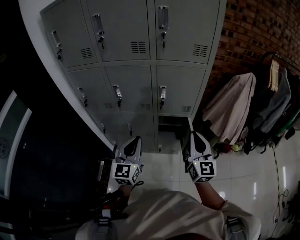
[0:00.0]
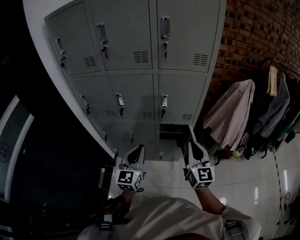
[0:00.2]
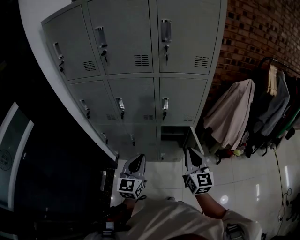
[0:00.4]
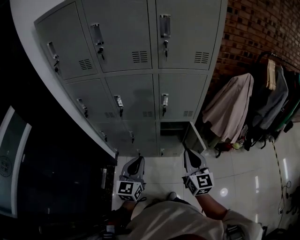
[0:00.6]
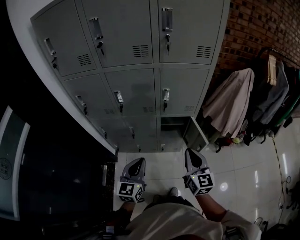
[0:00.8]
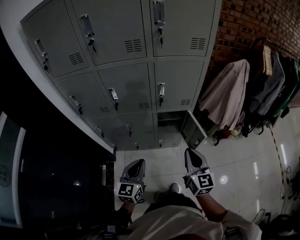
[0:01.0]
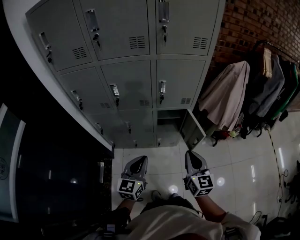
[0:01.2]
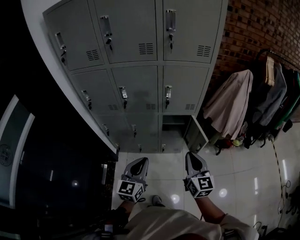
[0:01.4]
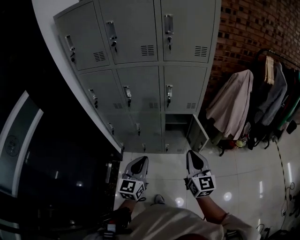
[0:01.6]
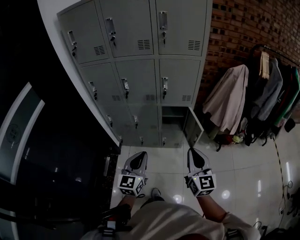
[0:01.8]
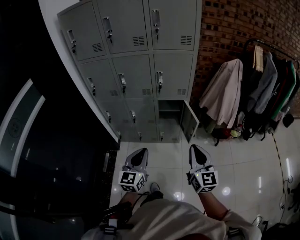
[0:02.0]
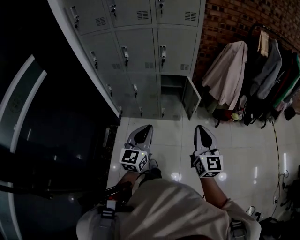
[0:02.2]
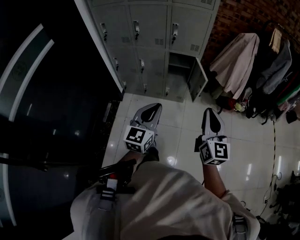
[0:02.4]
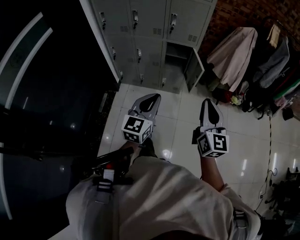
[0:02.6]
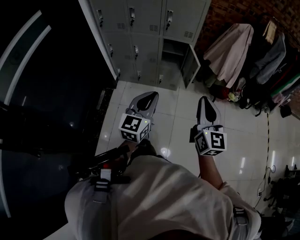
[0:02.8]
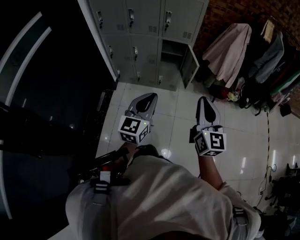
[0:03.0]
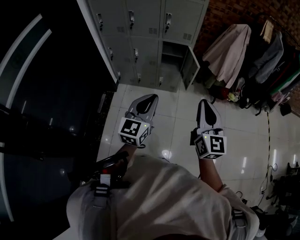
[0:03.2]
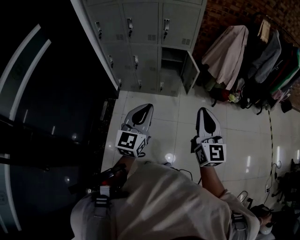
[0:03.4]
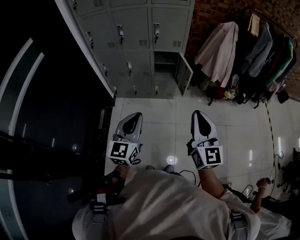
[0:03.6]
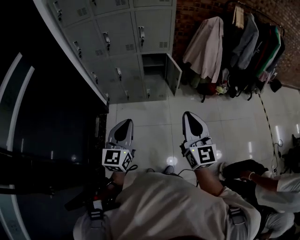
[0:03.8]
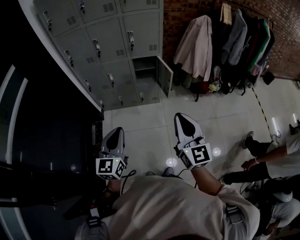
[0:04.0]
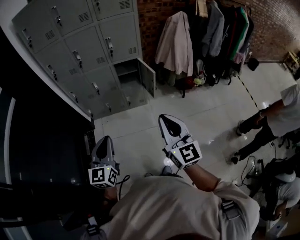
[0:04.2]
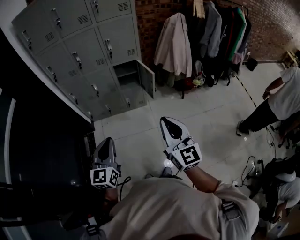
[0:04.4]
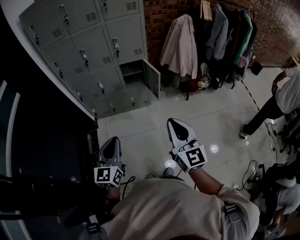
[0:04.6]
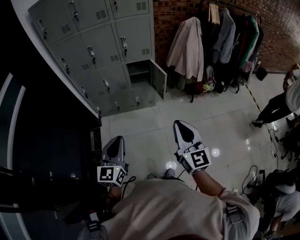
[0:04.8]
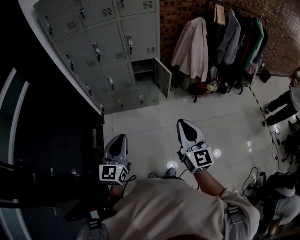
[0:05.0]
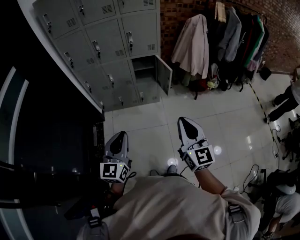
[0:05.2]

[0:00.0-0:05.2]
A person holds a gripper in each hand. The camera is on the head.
0:00.0 to 0:01.8: The two grippers go about 20 cm backward.
0:01.8 to 0:03.4: The right gripper moves backward, some 20 cm; the left gripper moves backward and to the right, about 20 cm.
0:03.4 to 0:05.2: The grippers both shift backward by approximately 10 cm.

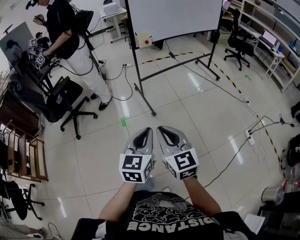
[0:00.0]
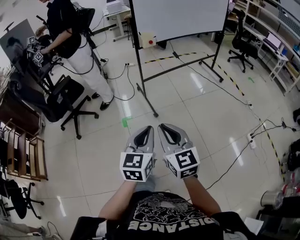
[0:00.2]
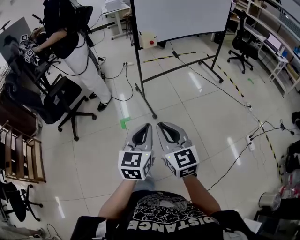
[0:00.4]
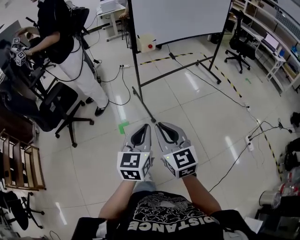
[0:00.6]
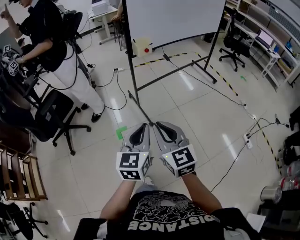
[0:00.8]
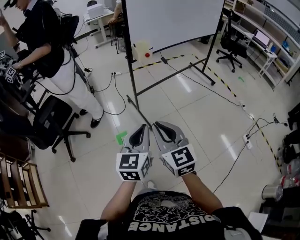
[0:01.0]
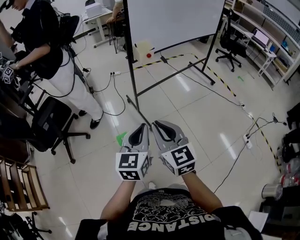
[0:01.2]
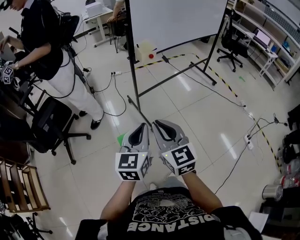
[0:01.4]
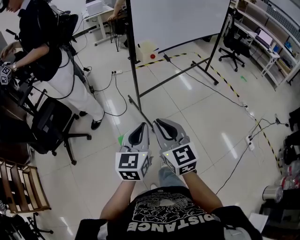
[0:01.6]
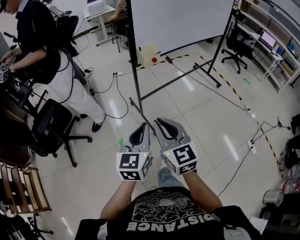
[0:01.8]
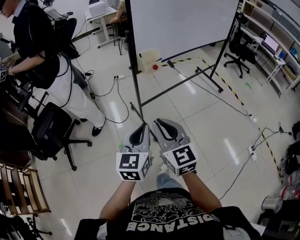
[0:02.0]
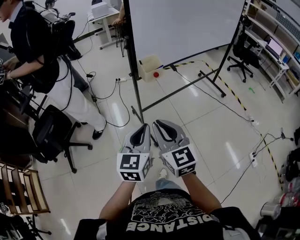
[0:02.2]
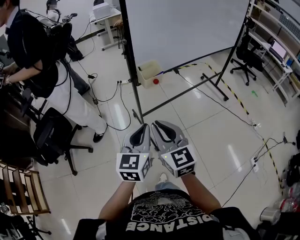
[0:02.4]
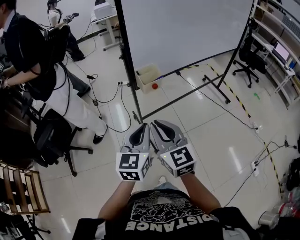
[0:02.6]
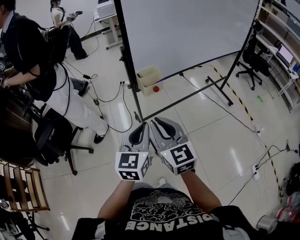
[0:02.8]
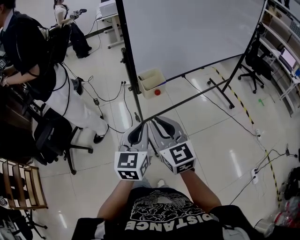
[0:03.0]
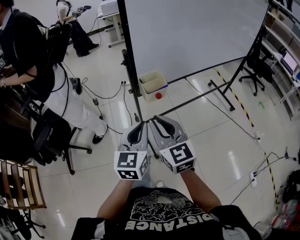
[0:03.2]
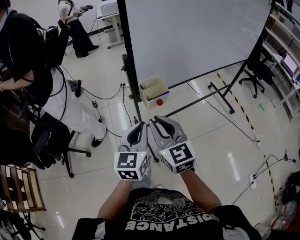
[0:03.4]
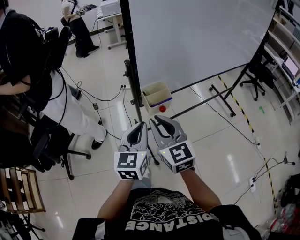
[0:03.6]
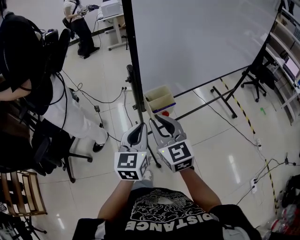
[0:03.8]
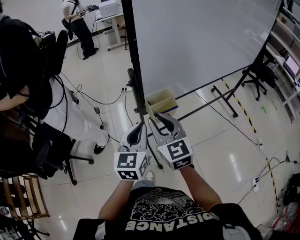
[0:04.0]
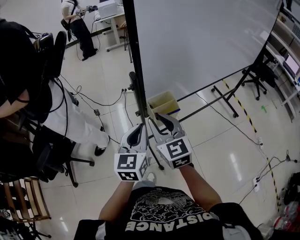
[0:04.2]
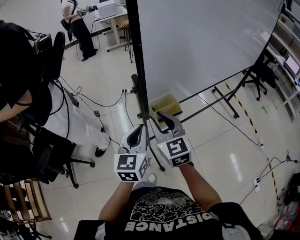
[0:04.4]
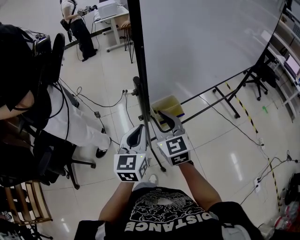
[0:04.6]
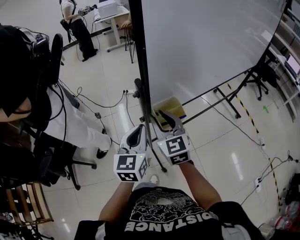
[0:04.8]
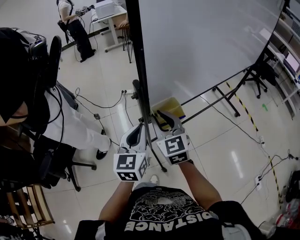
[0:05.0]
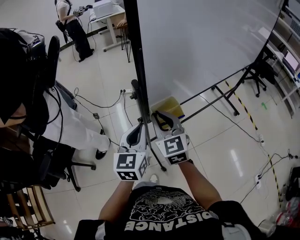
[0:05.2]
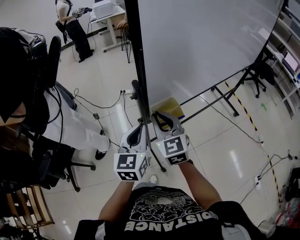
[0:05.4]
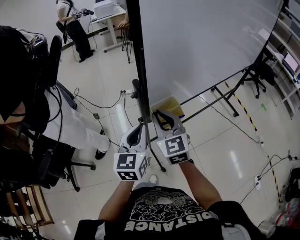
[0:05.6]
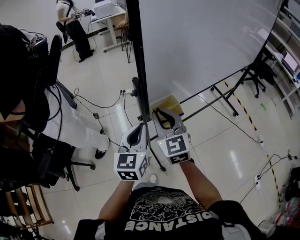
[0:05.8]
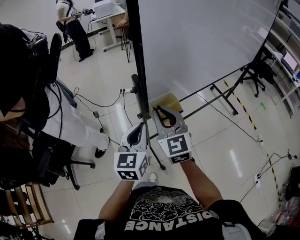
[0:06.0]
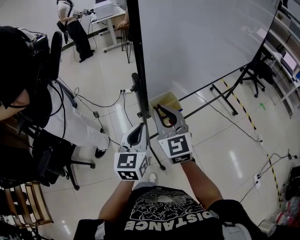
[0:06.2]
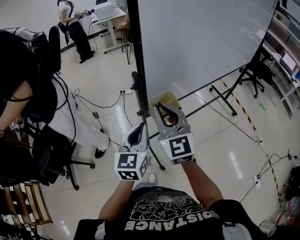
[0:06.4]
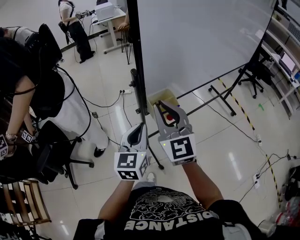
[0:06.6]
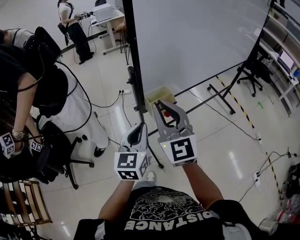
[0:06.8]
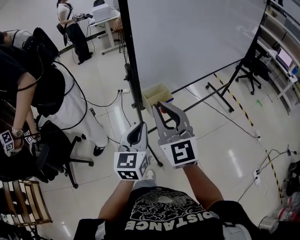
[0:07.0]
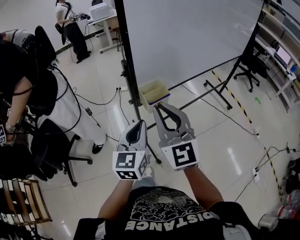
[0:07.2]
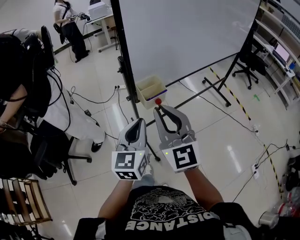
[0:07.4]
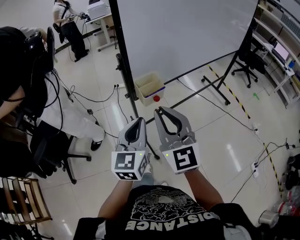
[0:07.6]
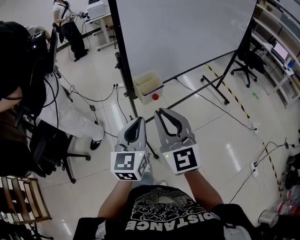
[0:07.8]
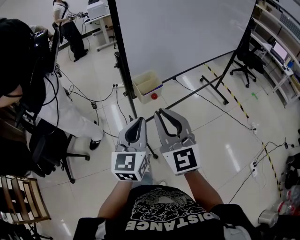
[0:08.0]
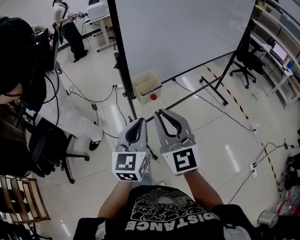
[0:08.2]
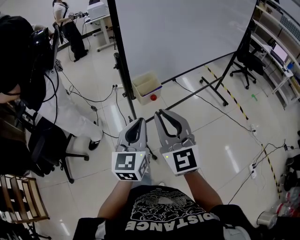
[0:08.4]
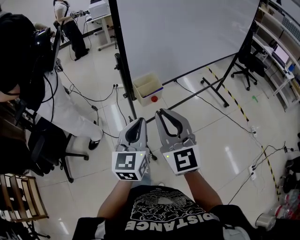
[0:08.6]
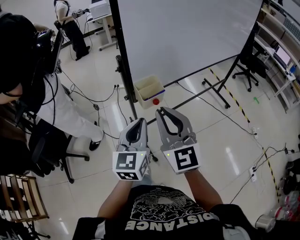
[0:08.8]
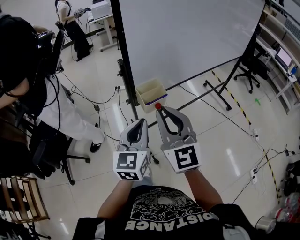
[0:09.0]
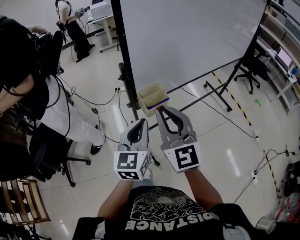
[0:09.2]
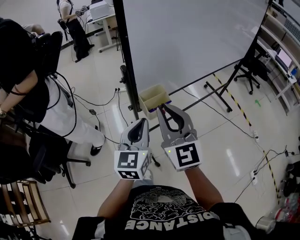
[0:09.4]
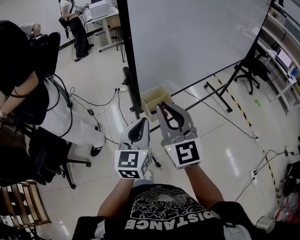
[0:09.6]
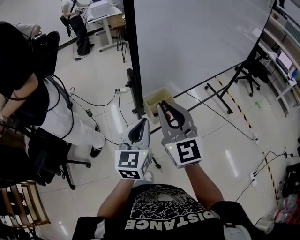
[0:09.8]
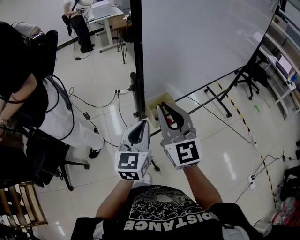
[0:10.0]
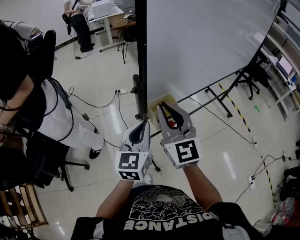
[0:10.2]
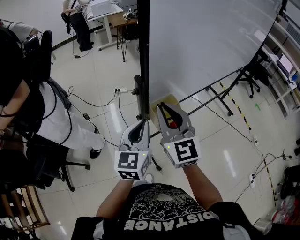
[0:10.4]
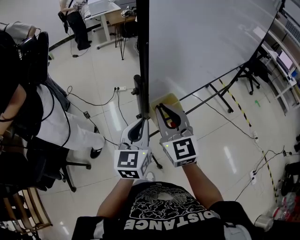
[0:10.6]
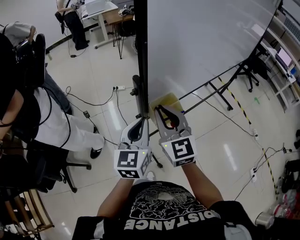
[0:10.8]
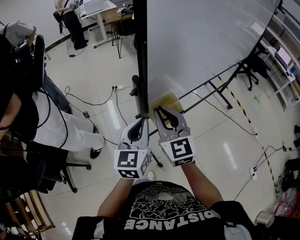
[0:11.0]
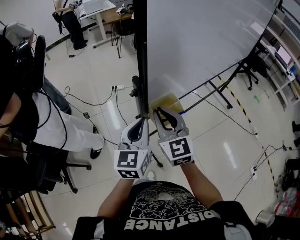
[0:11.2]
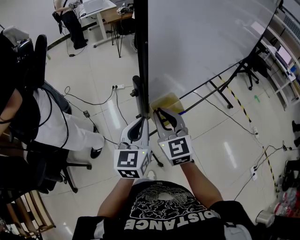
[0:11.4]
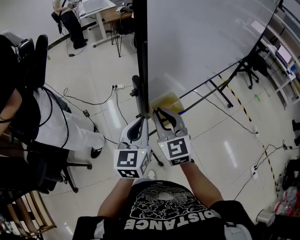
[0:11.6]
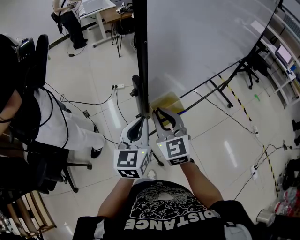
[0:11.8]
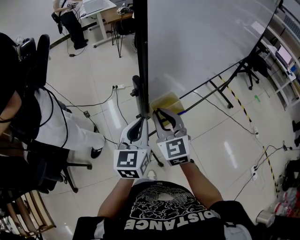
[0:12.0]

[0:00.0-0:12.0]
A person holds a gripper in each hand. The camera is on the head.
0:00.0 to 0:01.6: Both grippers move forward, about 30 cm.
0:01.6 to 0:03.0: Both grippers travel together forward, approximately 25 cm.
0:03.0 to 0:04.4: The two grippers go roughly 20 cm forward.
0:04.4 to 0:06.0: The grippers move only a little.
0:06.0 to 0:07.6: Both grippers travel together backward, about 15 cm.
0:07.6 to 0:09.0: The grippers move only a little.
0:09.0 to 0:10.4: Both grippers travel together forward and to the left, roughly 15 cm.
0:10.4 to 0:12.0: The right gripper goes approximately 10 cm downward.

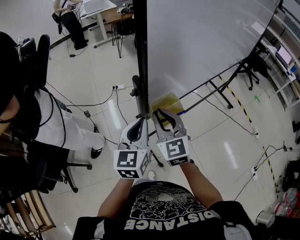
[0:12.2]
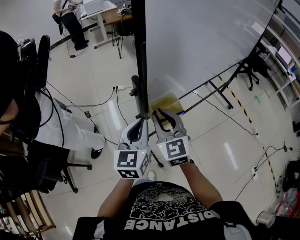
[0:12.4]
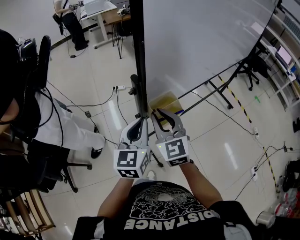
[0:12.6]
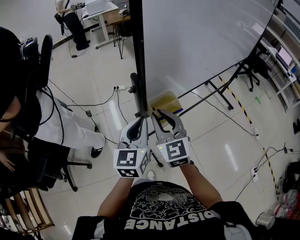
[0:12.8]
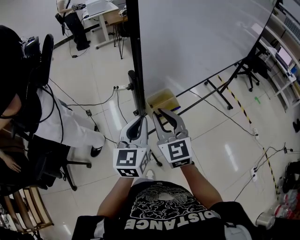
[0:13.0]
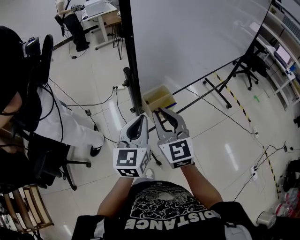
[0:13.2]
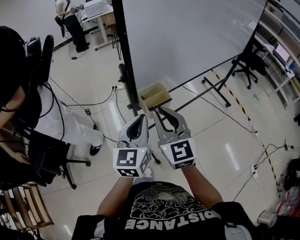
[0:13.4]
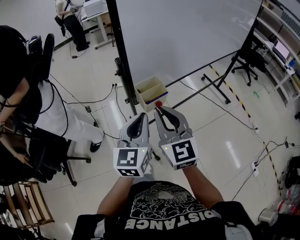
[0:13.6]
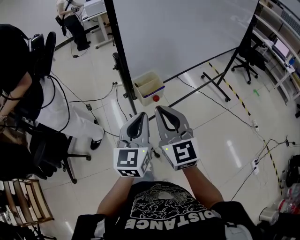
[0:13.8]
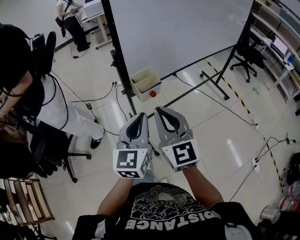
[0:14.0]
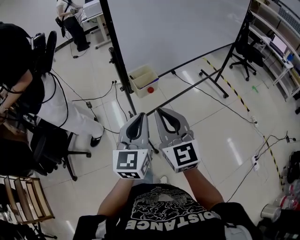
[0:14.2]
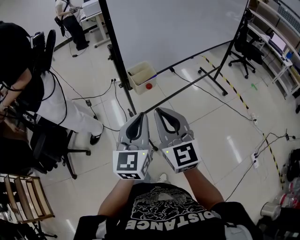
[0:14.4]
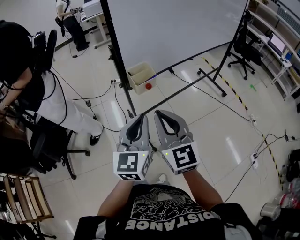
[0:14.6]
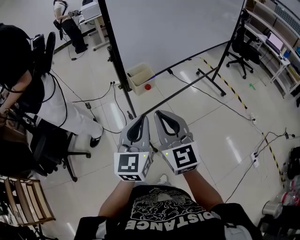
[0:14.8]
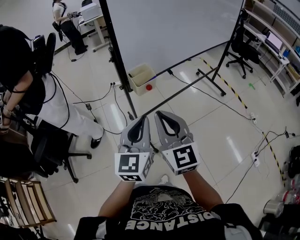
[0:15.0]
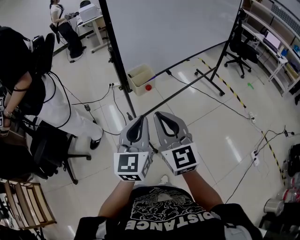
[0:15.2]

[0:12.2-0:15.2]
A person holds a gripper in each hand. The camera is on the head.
0:12.2 to 0:13.8: The right gripper goes approximately 20 cm backward, upward and to the right. Meanwhile the left gripper heads backward and to the right, covering roughly 15 cm.
0:13.8 to 0:15.2: The grippers both shift backward by roughly 10 cm.

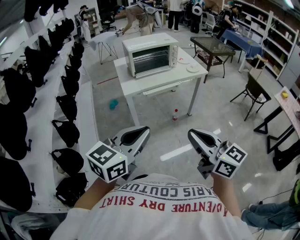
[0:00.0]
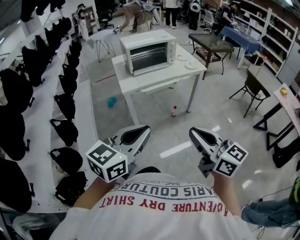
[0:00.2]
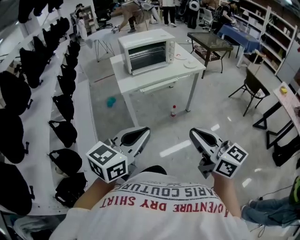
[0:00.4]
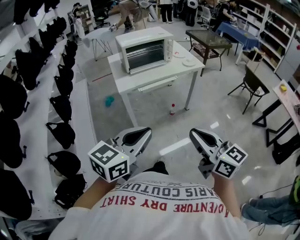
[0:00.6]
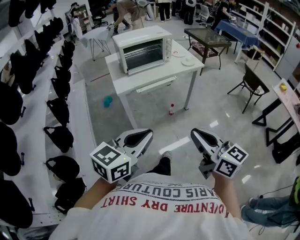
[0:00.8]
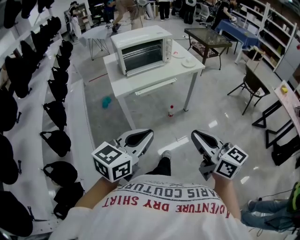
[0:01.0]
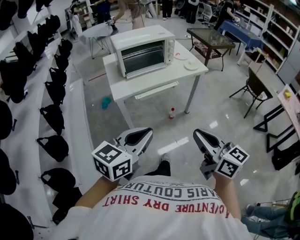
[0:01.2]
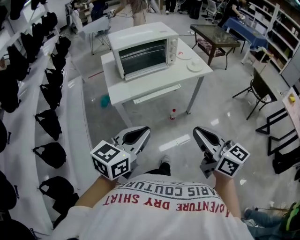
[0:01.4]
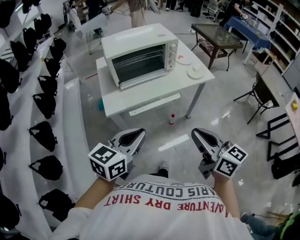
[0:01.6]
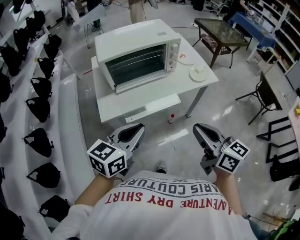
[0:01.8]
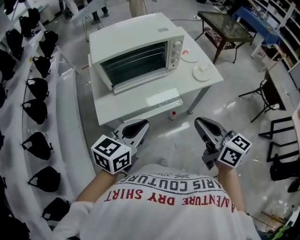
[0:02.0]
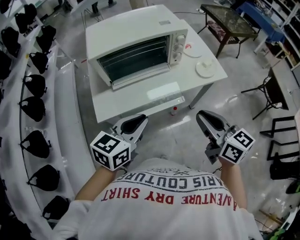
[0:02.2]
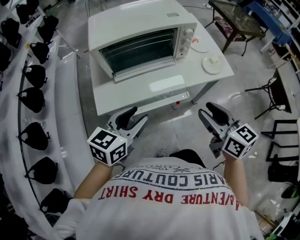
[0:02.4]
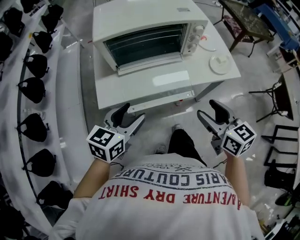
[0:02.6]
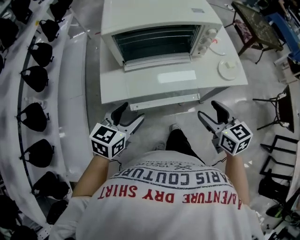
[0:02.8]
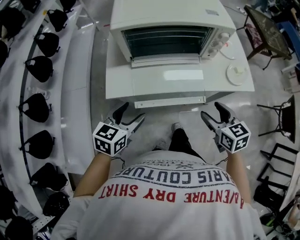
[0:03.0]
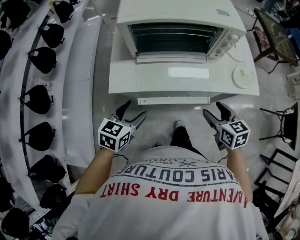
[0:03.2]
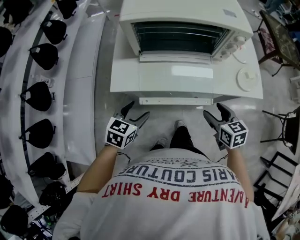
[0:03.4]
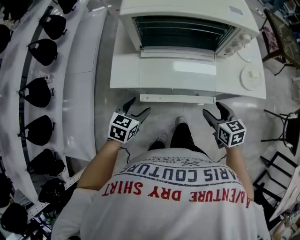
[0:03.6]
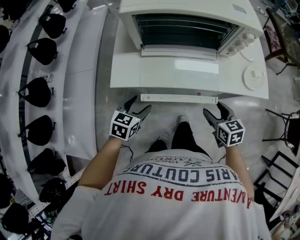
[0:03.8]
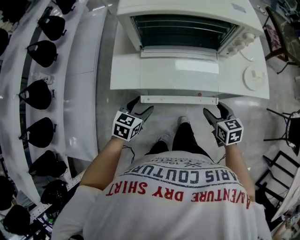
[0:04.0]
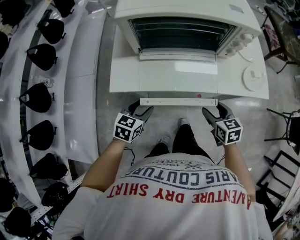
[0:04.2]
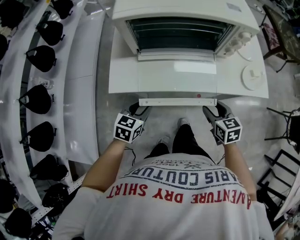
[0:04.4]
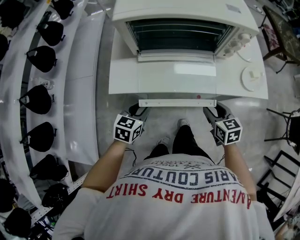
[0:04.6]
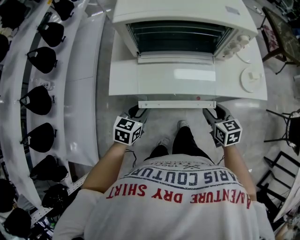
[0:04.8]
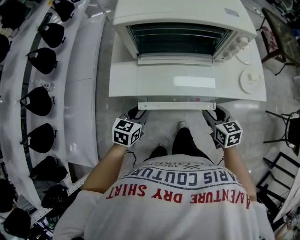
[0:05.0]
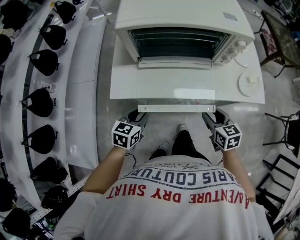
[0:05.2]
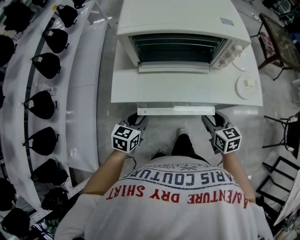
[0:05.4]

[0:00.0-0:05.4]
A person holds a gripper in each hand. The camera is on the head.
0:00.0 to 0:01.4: Both grippers move forward, roughly 20 cm.
0:01.4 to 0:02.8: The grippers both shift forward and downward by roughly 35 cm. The right gripper turns by roughly 30 degrees, and opens up. The left gripper changes its angle by roughly 30 degrees, and opens up.
0:02.8 to 0:04.0: The two grippers go roughly 15 cm downward.
0:04.0 to 0:05.4: The left gripper closes its fingers; the right gripper closes up.
